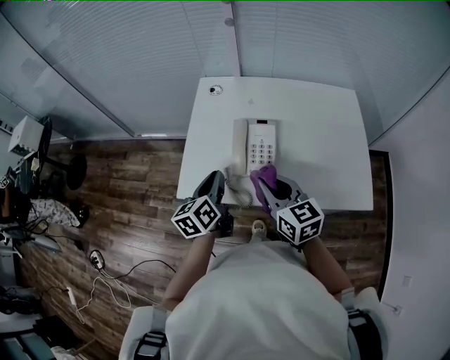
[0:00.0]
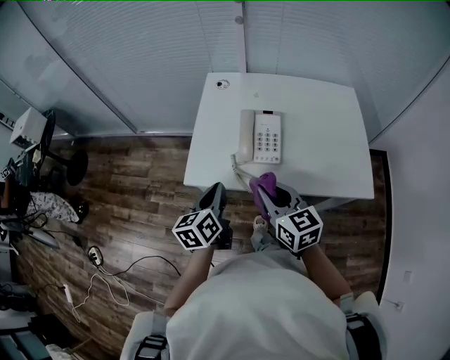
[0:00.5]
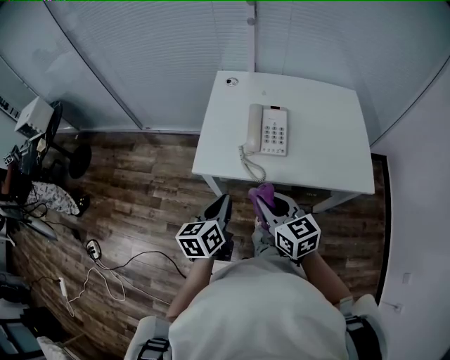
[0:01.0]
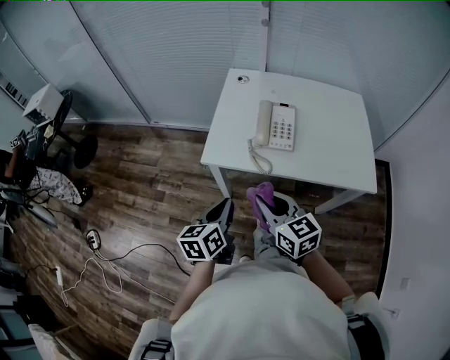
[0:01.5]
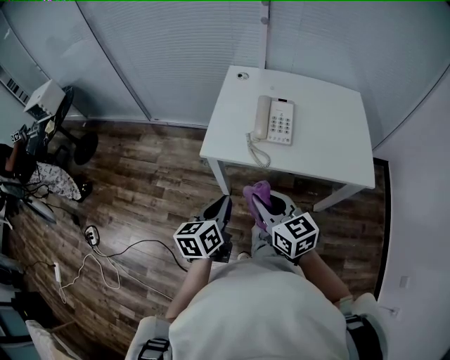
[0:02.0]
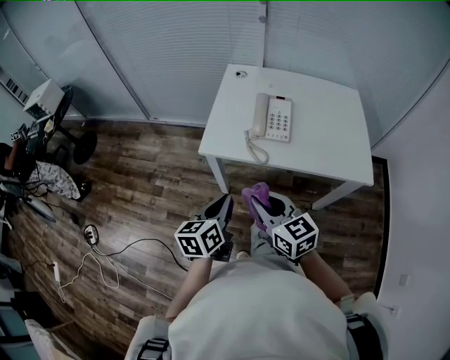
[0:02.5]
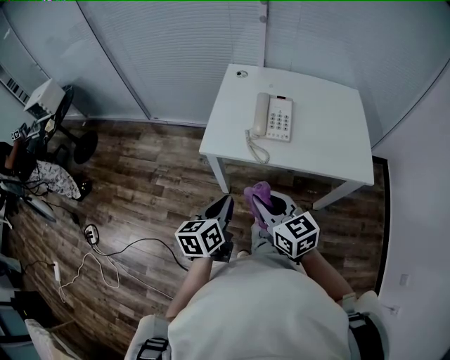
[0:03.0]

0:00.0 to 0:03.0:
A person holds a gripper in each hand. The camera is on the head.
0:00.0 to 0:01.5: The right gripper shifts about 20 cm backward and to the left. The left gripper moves backward, roughly 20 cm.
0:01.5 to 0:03.0: The grippers stay close to where they were, moving slightly.

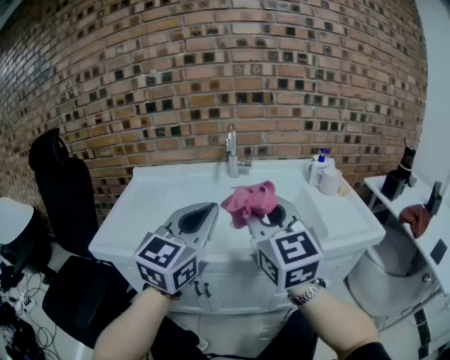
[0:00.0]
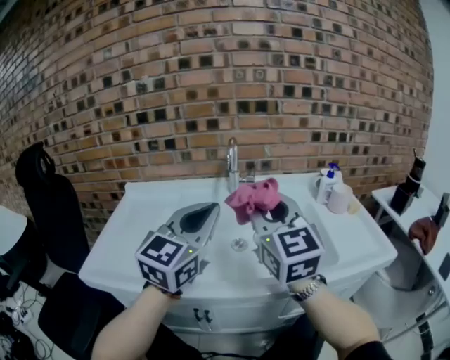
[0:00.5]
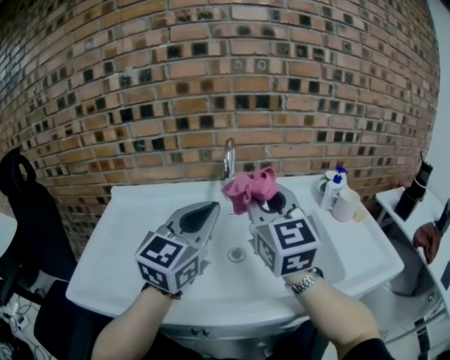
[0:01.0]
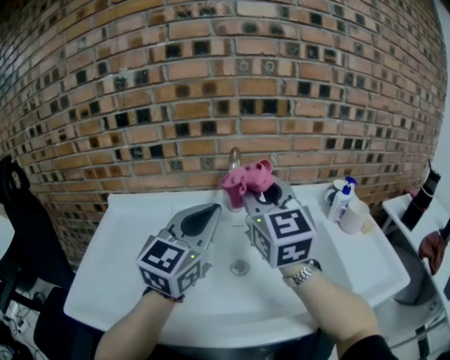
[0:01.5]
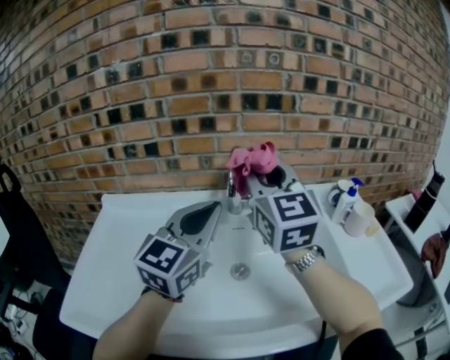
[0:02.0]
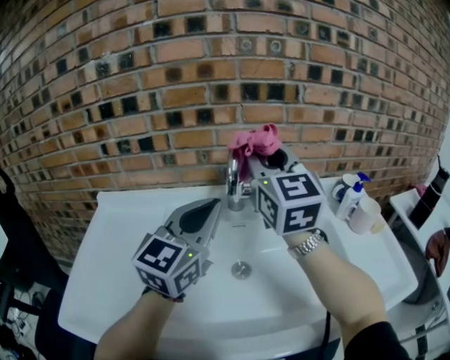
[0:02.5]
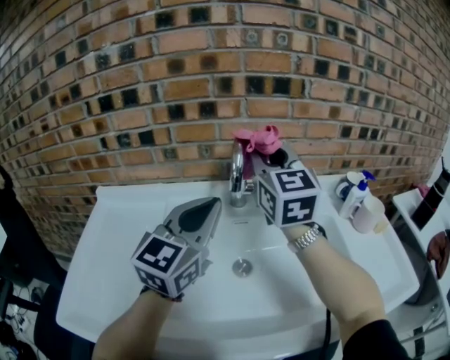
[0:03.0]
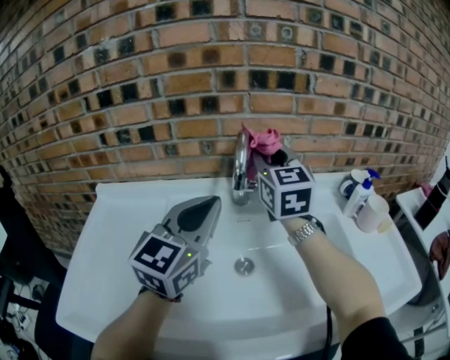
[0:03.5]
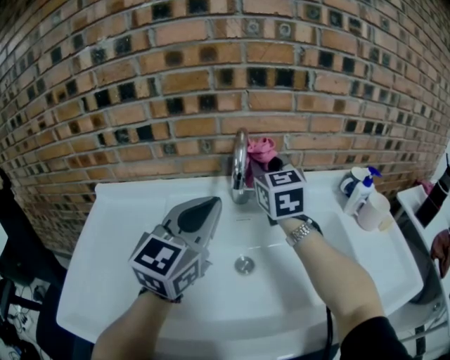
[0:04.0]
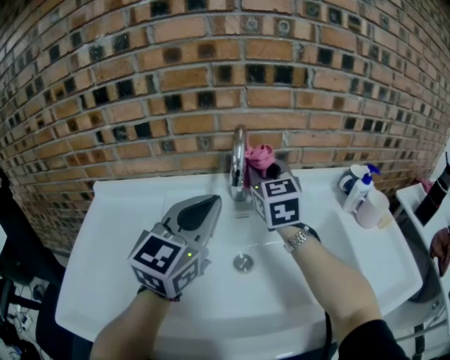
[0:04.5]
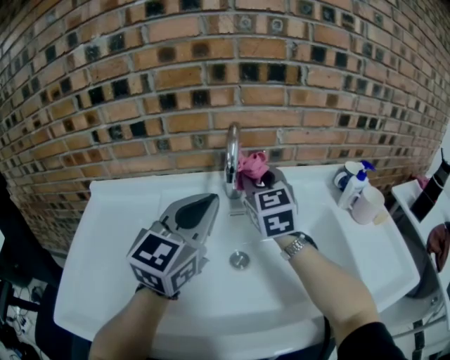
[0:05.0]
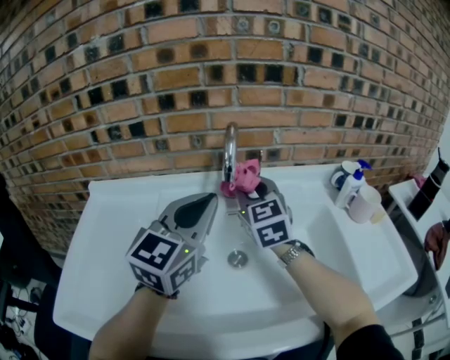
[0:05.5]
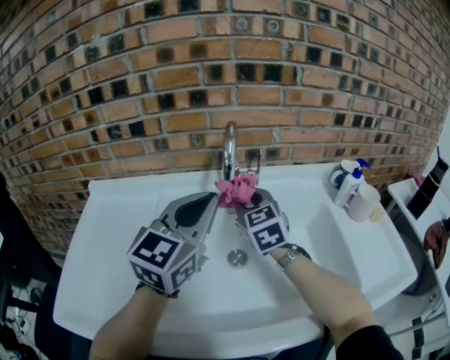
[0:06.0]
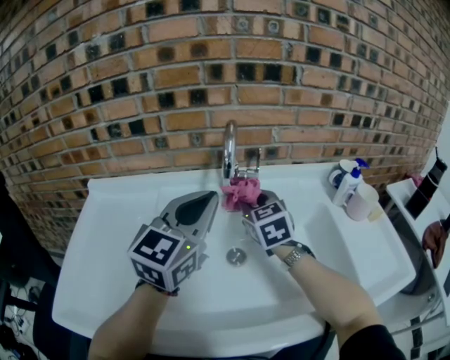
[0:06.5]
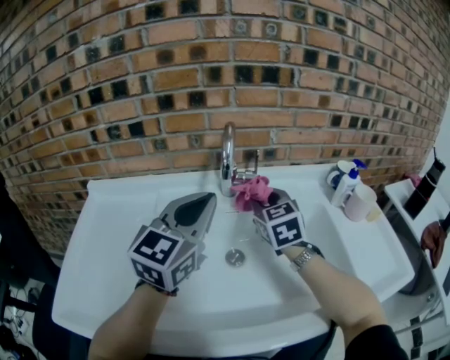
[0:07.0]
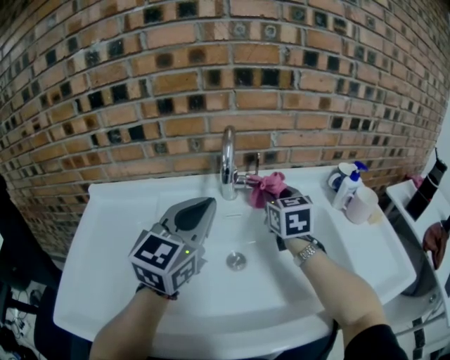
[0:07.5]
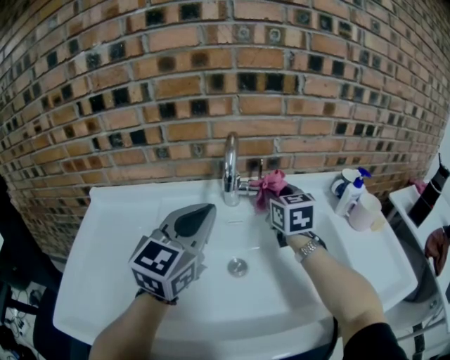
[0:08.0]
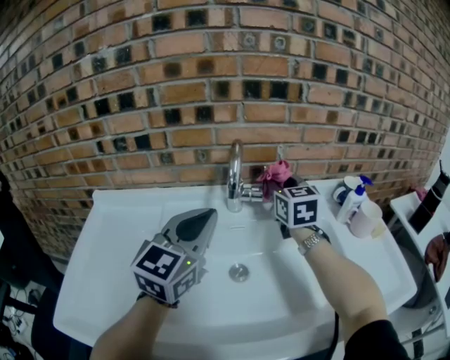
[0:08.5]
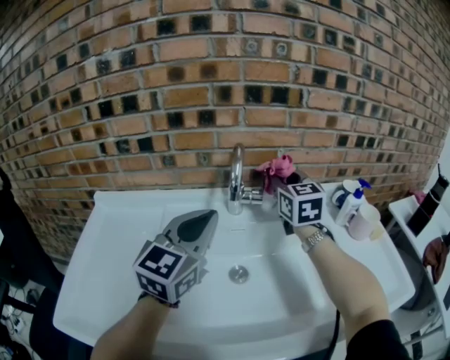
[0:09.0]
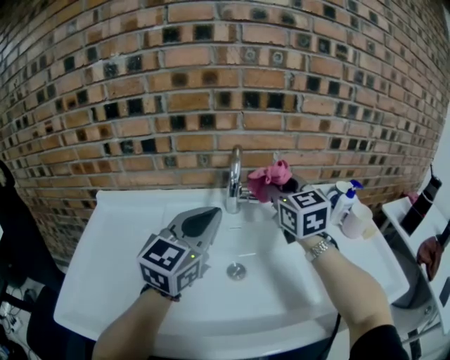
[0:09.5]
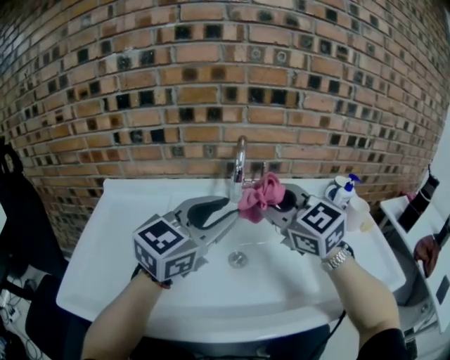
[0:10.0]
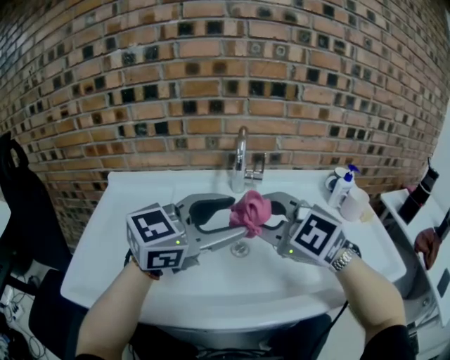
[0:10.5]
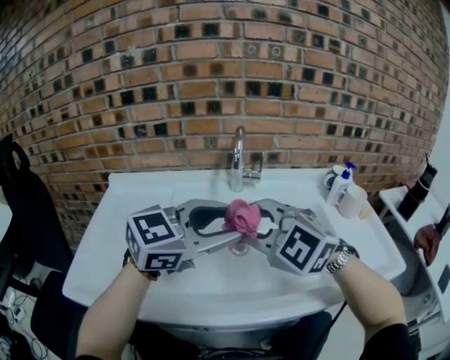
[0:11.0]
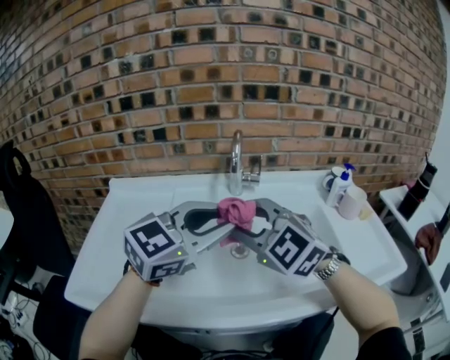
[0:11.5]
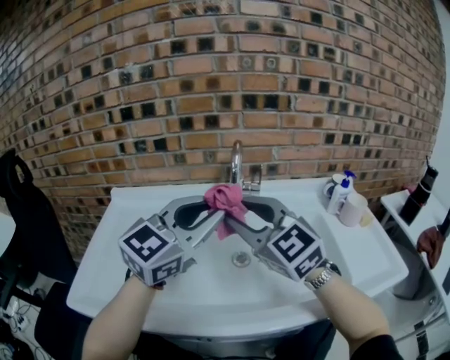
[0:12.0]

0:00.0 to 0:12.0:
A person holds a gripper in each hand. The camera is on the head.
0:00.0 to 0:02.0: Both grippers travel together forward, about 30 cm.
0:02.0 to 0:04.0: The right gripper moves forward and downward, roughly 15 cm.
0:04.0 to 0:06.0: The right gripper shifts about 10 cm downward and backward.
0:06.0 to 0:08.0: The right gripper goes approximately 10 cm to the right and forward.
0:08.0 to 0:10.0: The right gripper travels backward and upward by approximately 20 cm, and changes its angle by approximately 40 degrees; the left gripper moves backward, approximately 5 cm, and opens up.
0:10.0 to 0:12.0: The right gripper heads backward, covering roughly 5 cm; the left gripper opens, then closes again.

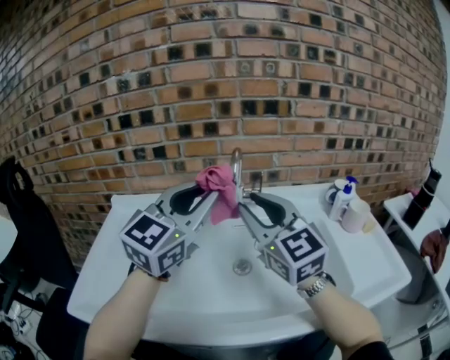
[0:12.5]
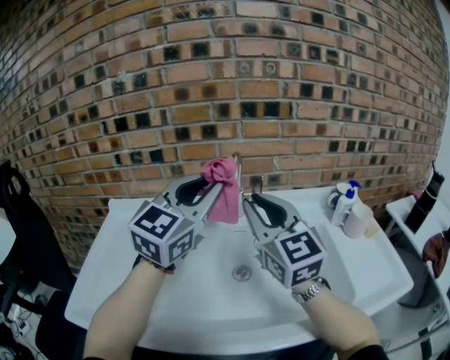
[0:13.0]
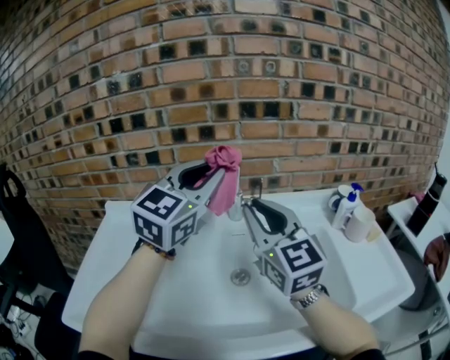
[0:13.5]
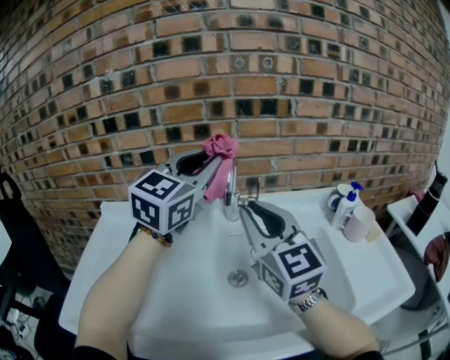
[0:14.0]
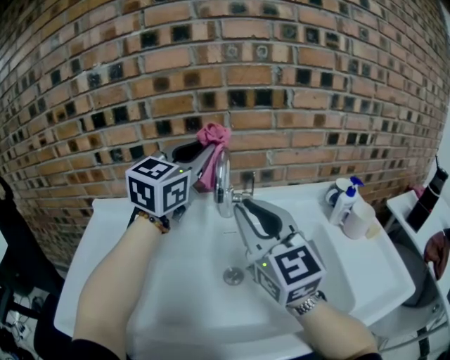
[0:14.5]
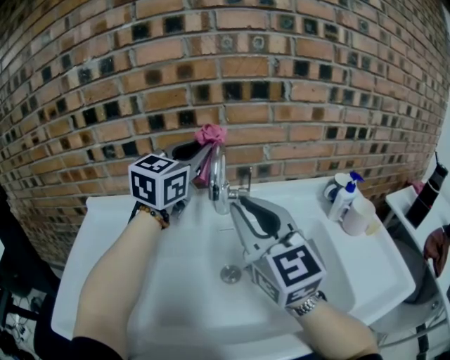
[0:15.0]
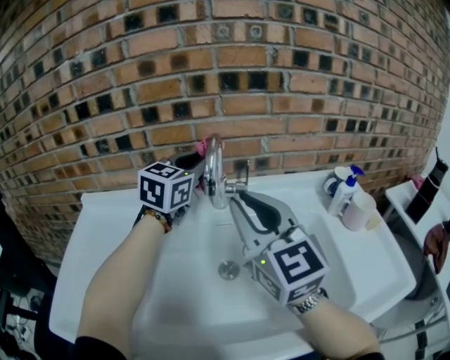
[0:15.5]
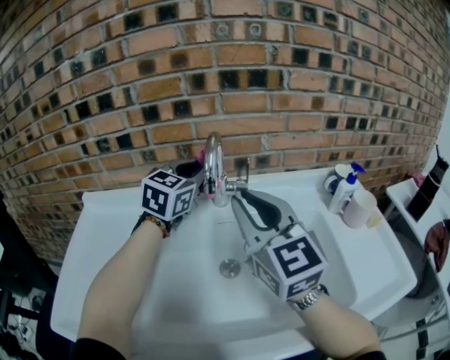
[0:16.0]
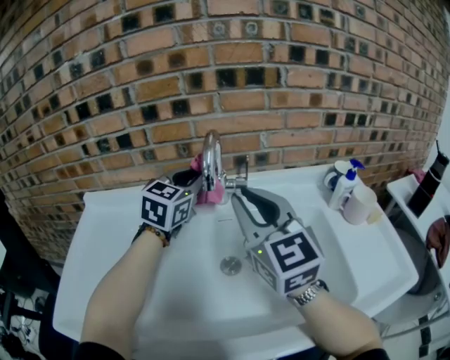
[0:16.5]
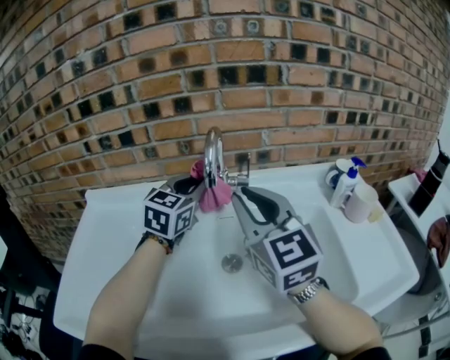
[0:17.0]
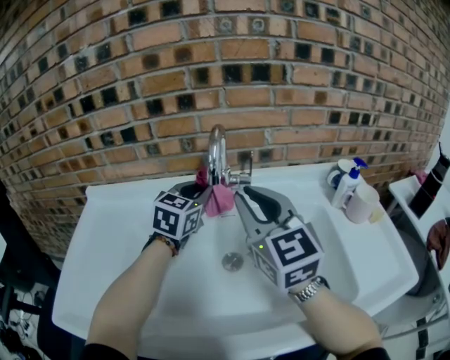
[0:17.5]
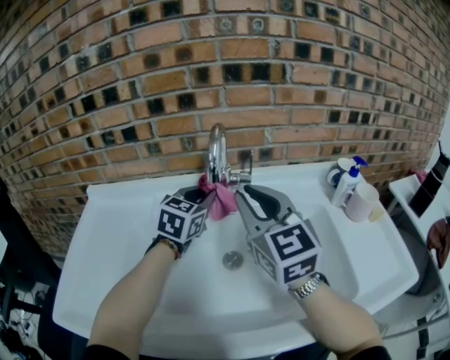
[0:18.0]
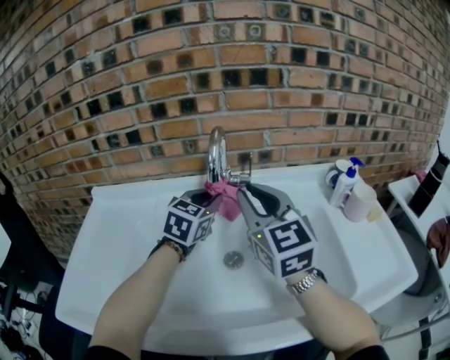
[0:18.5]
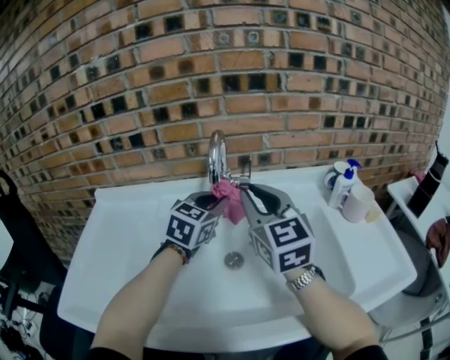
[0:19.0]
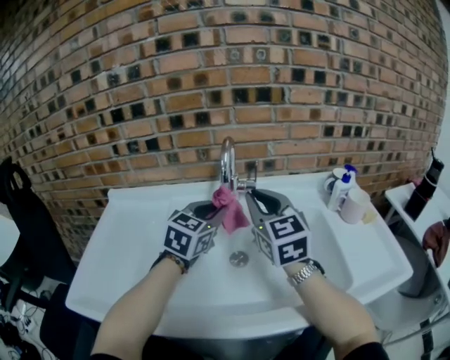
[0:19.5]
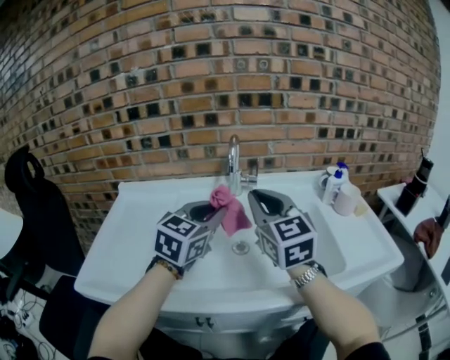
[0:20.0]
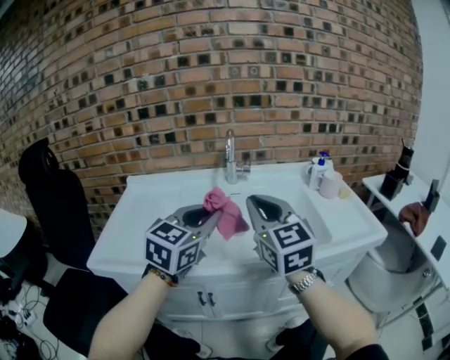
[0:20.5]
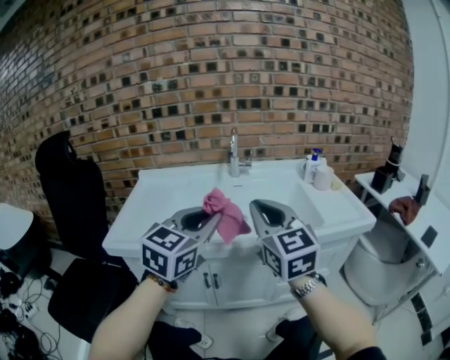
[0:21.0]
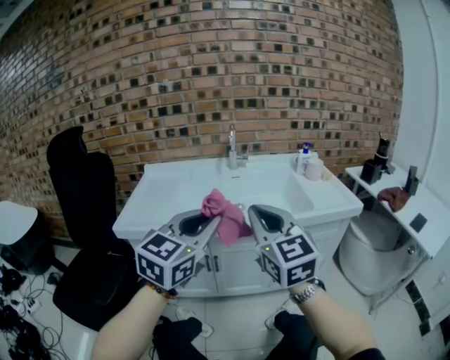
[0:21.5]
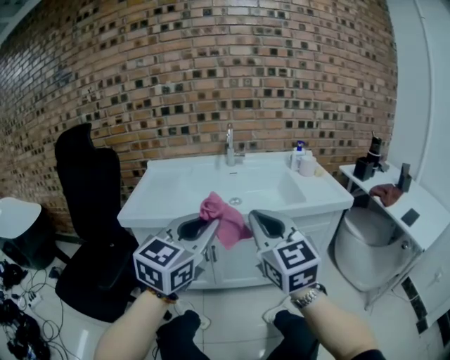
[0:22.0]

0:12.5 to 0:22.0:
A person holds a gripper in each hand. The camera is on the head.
0:12.5 to 0:14.5: The left gripper heads forward, covering some 15 cm.
0:14.5 to 0:16.5: The left gripper heads downward, covering roughly 15 cm.
0:16.5 to 0:18.0: The left gripper goes approximately 10 cm downward.
0:18.0 to 0:20.0: The left gripper moves backward and upward, about 20 cm. Meanwhile the right gripper goes some 10 cm backward.
0:20.0 to 0:22.0: The two grippers travel together, backward, about 40 cm.

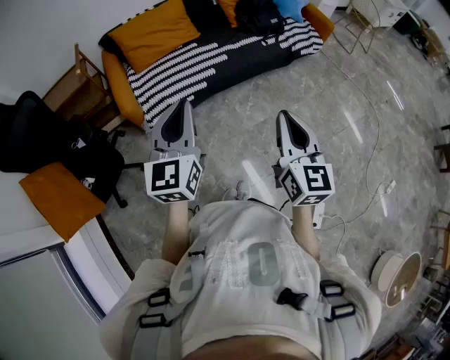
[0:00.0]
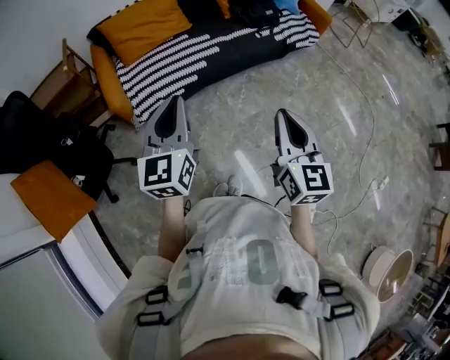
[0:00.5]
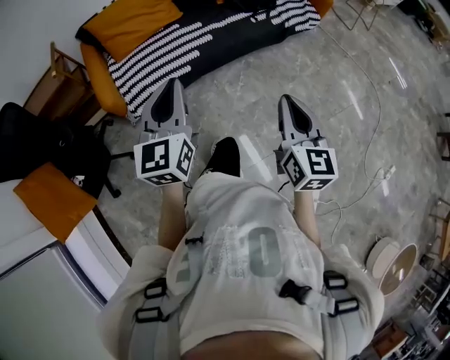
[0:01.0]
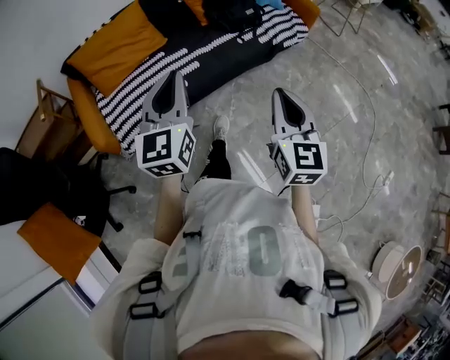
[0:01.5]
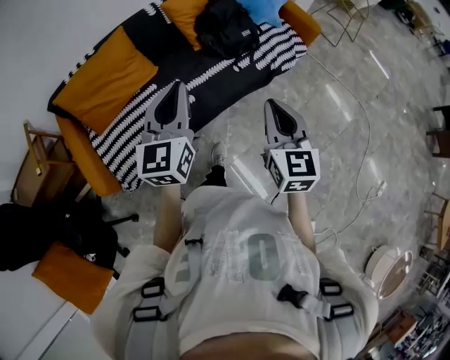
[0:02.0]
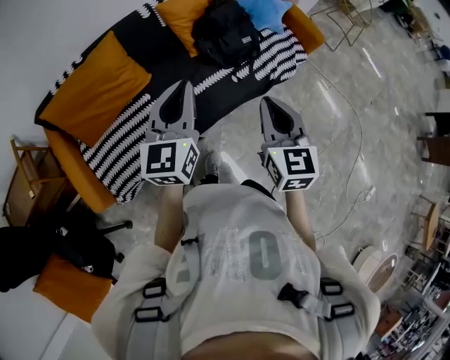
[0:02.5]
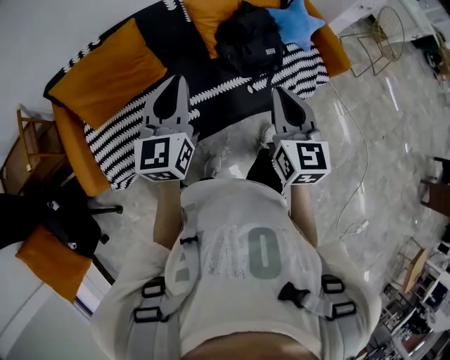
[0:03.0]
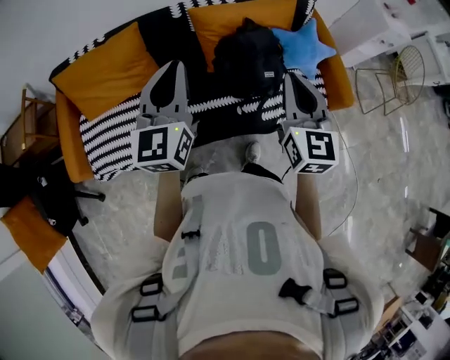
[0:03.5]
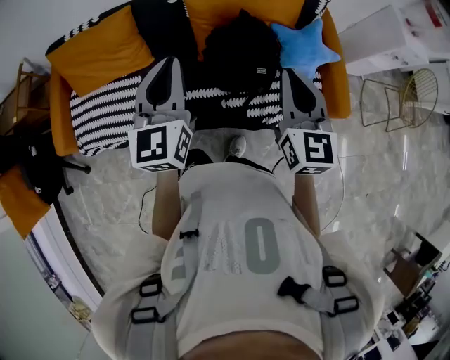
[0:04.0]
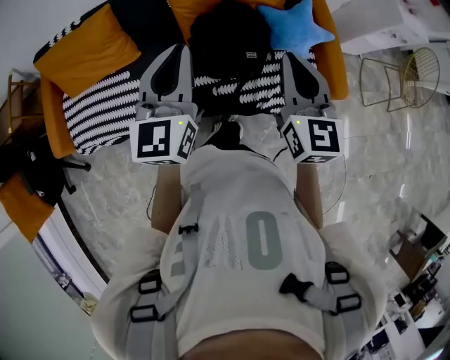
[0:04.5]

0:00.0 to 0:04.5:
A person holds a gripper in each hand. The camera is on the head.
0:00.0 to 0:02.0: Both grippers are carried forward, some 50 cm.
0:02.0 to 0:04.5: The two grippers travel together, some 50 cm. The left gripper changes its angle by roughly 30 degrees. Meanwhile the right gripper changes its angle by roughly 30 degrees.
